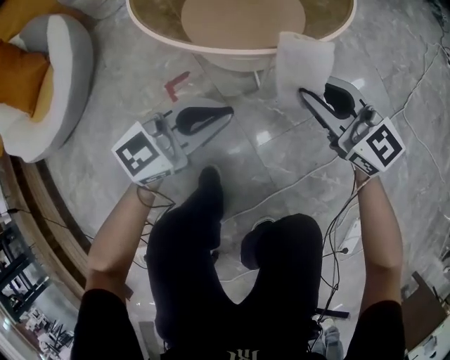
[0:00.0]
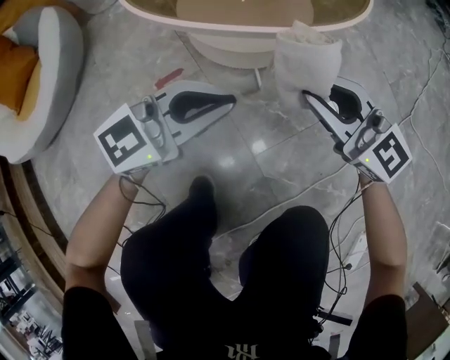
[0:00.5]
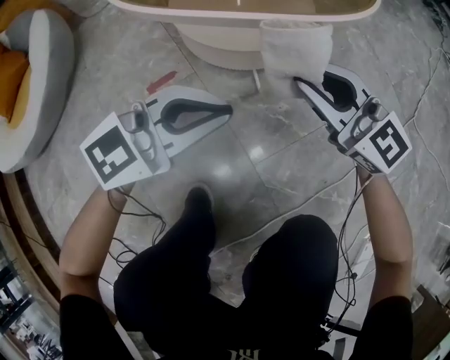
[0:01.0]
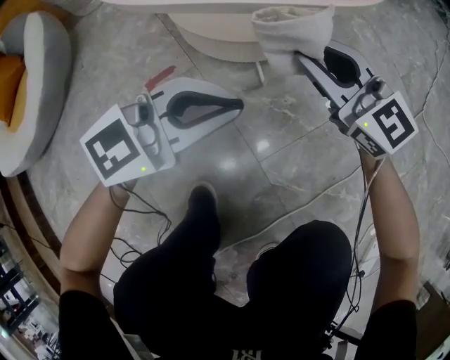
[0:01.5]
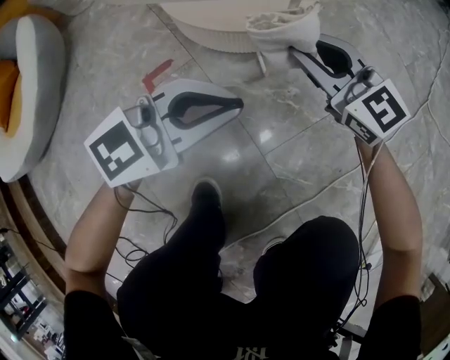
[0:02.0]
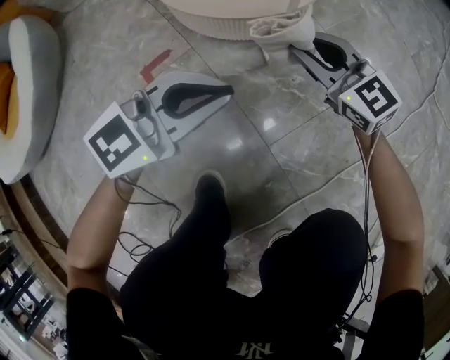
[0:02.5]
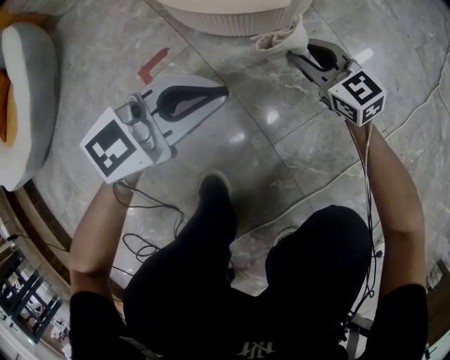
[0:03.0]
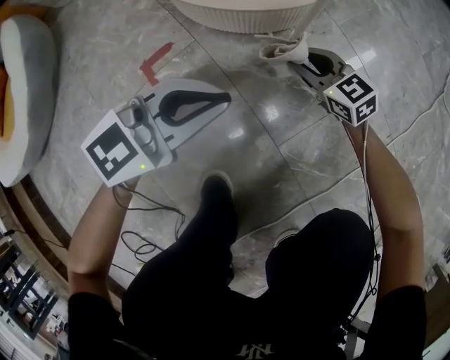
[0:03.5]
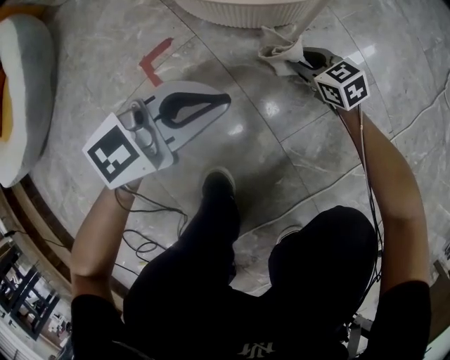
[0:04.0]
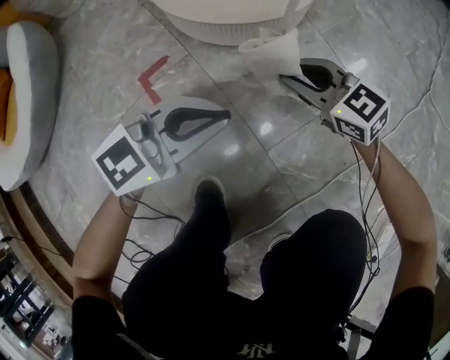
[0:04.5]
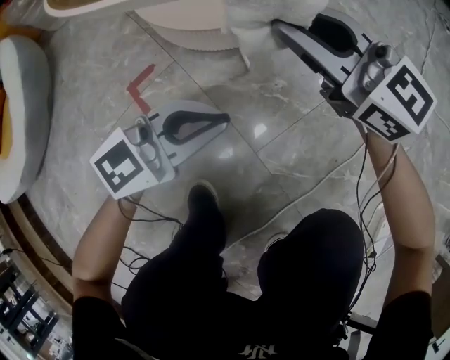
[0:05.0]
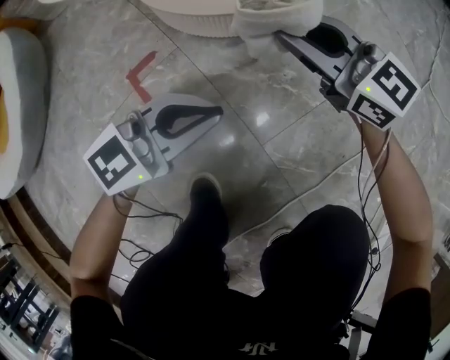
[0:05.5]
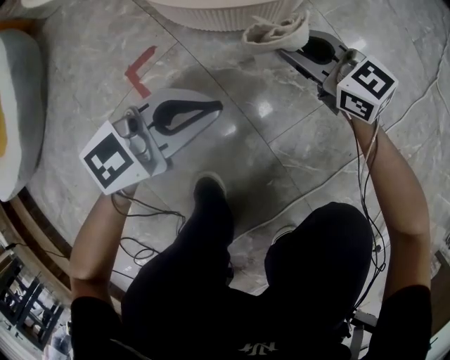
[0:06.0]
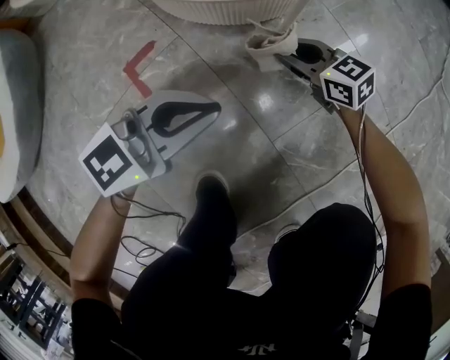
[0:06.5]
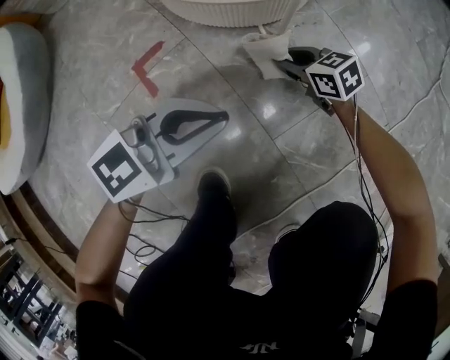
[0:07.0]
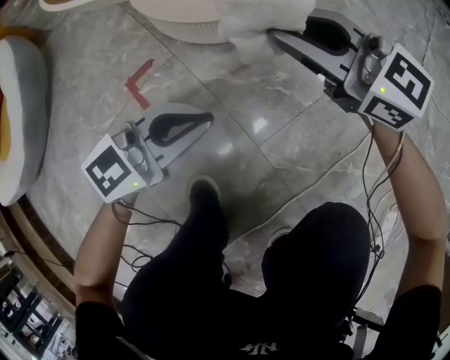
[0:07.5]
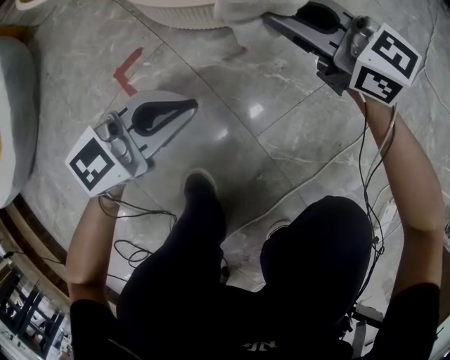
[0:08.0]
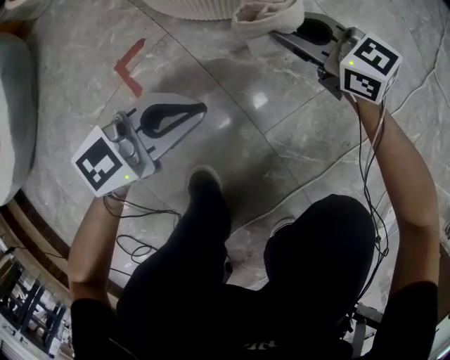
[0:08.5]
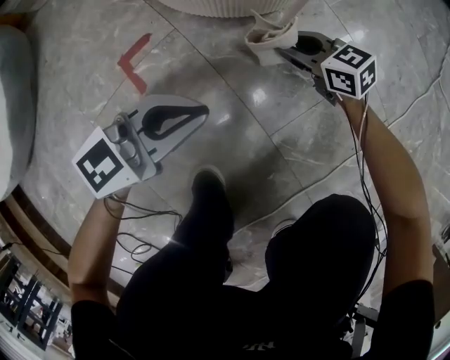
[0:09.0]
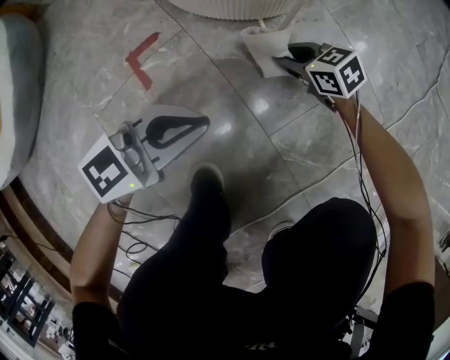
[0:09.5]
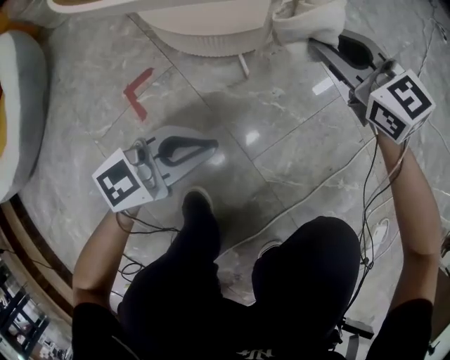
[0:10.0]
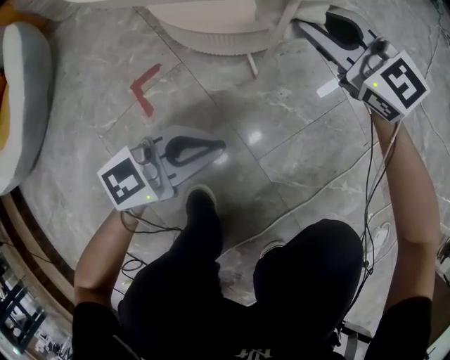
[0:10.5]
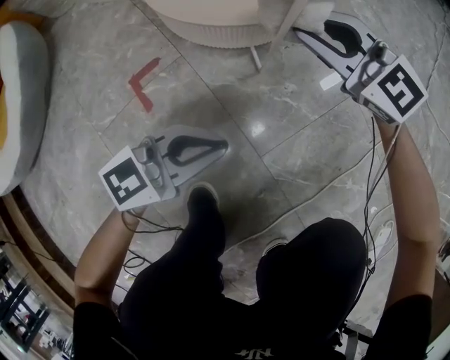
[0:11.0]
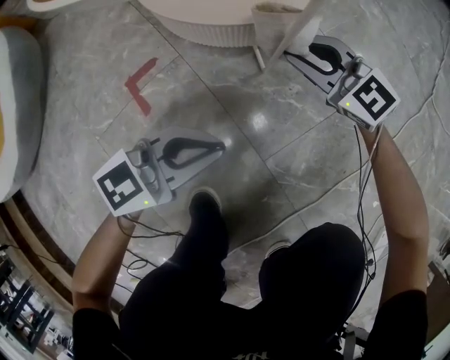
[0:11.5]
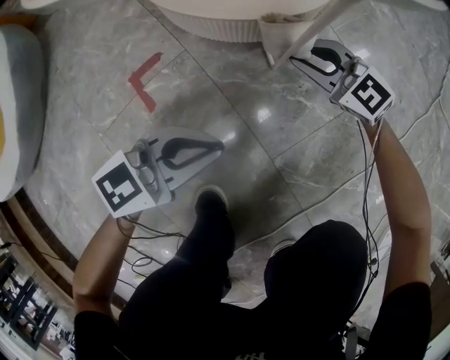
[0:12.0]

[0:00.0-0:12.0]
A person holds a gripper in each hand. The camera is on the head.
0:00.0 to 0:02.0: The two grippers go about 15 cm downward.
0:02.0 to 0:04.0: The right gripper heads downward, covering approximately 25 cm, and rotates roughly 30 degrees. Meanwhile the left gripper is displaced downward by roughly 5 cm.
0:04.0 to 0:06.0: The right gripper heads upward, covering roughly 15 cm, and swivels roughly 20 degrees.
0:06.0 to 0:08.0: The right gripper swings up and down, approximately 30 cm each way, with 2 reversals.
0:08.0 to 0:10.0: The right gripper reaches some 25 cm downward, then returns, and changes its angle by some 20 degrees.
0:10.0 to 0:12.0: The right gripper moves downward, approximately 15 cm, and changes its angle by some 20 degrees. The left gripper changes place by some 5 cm.

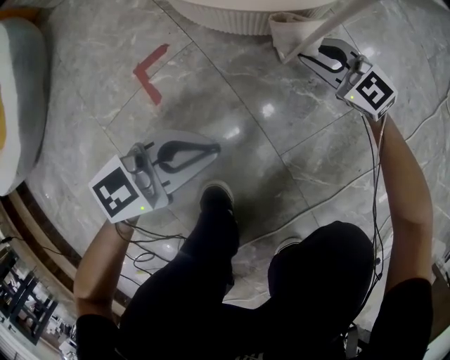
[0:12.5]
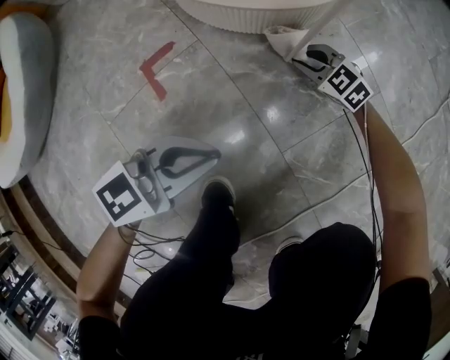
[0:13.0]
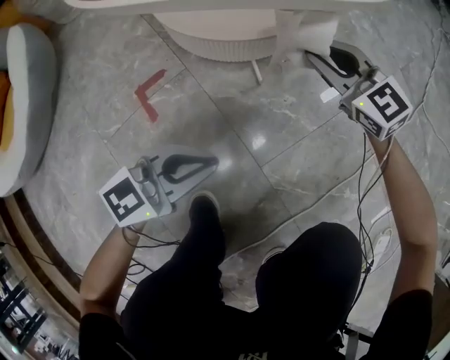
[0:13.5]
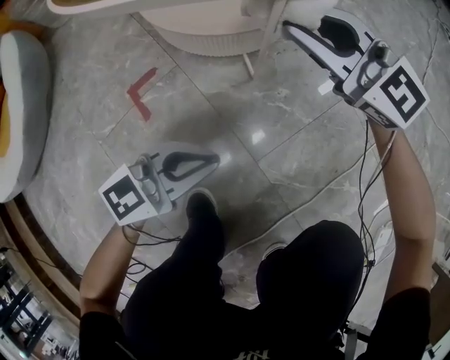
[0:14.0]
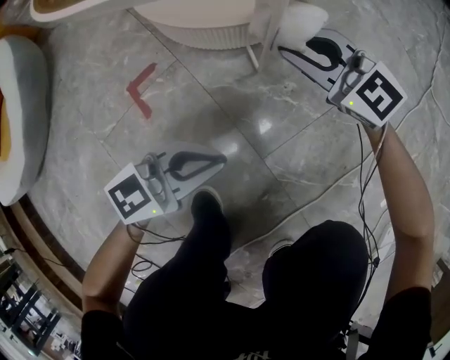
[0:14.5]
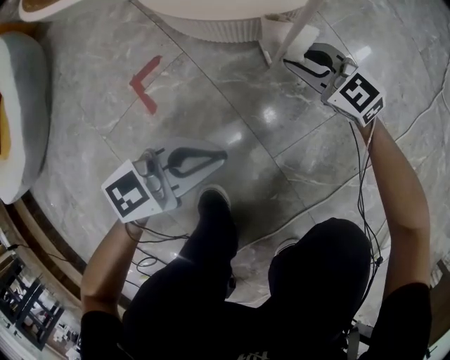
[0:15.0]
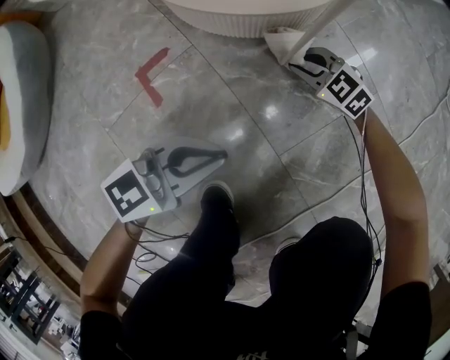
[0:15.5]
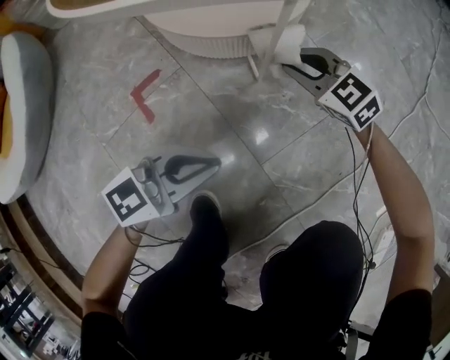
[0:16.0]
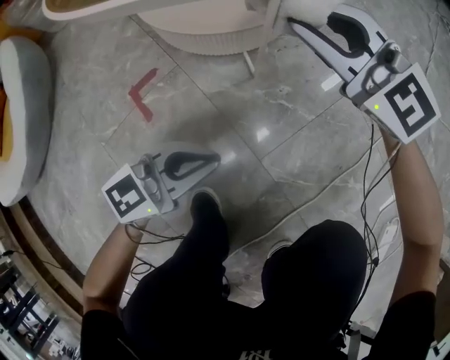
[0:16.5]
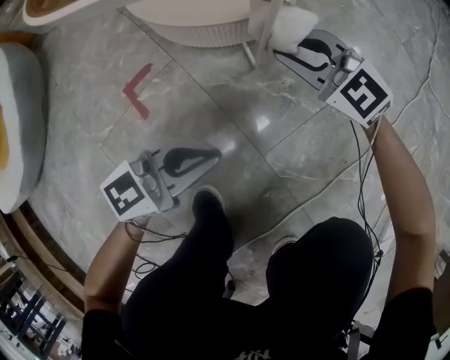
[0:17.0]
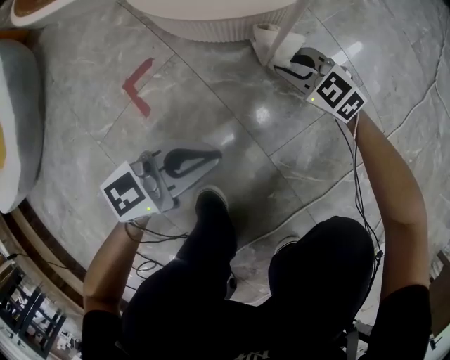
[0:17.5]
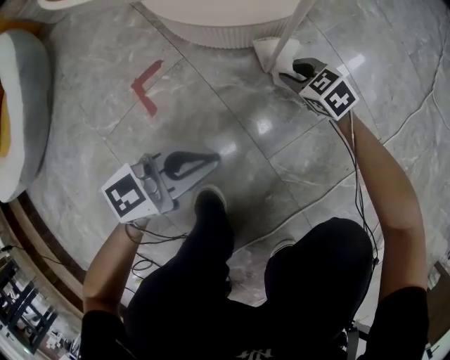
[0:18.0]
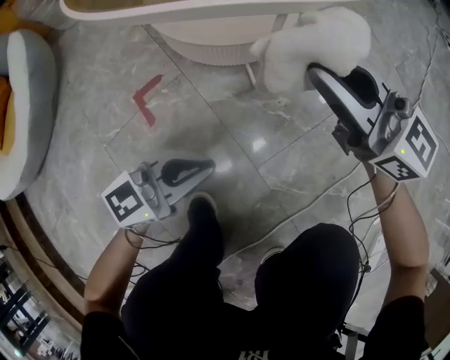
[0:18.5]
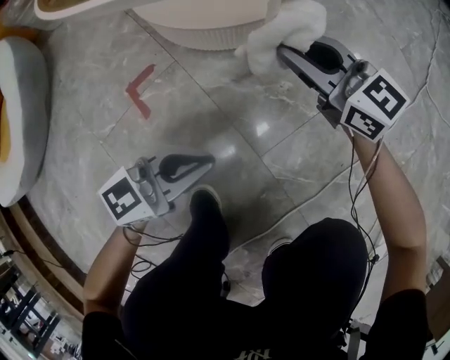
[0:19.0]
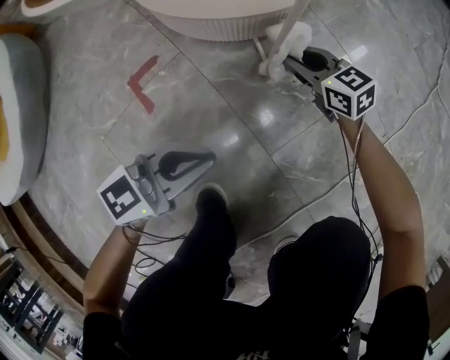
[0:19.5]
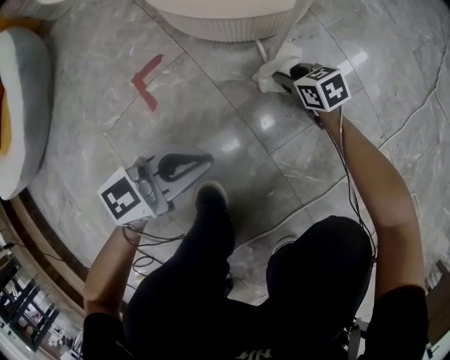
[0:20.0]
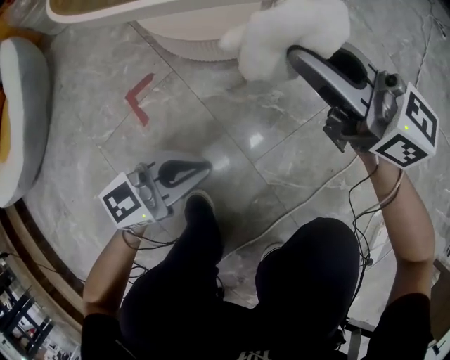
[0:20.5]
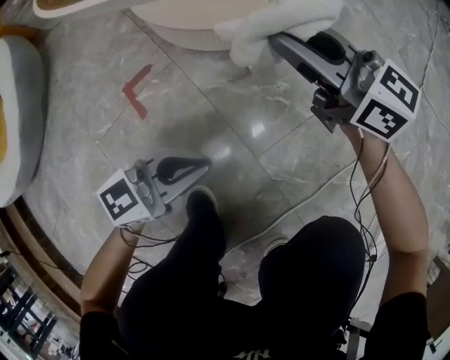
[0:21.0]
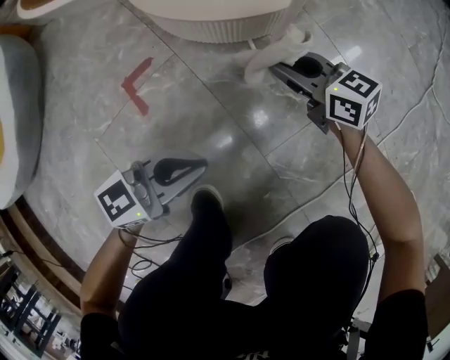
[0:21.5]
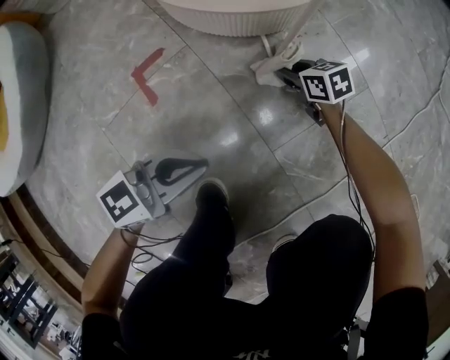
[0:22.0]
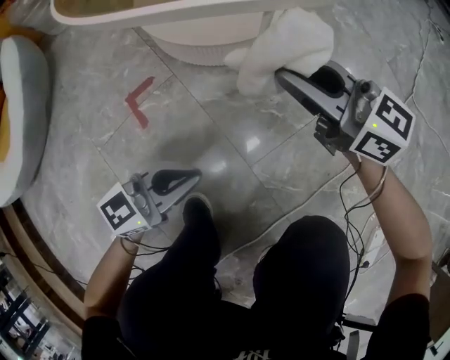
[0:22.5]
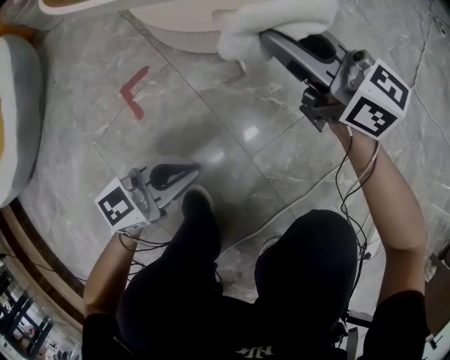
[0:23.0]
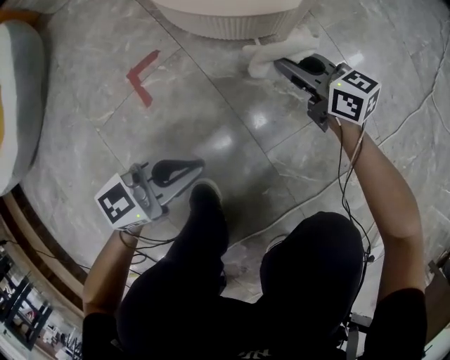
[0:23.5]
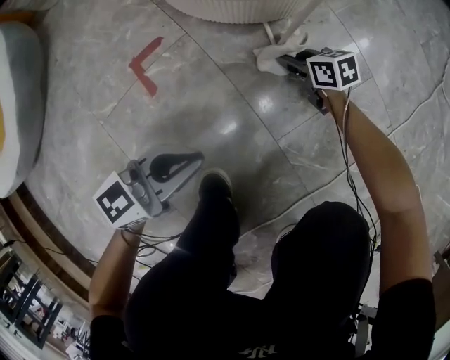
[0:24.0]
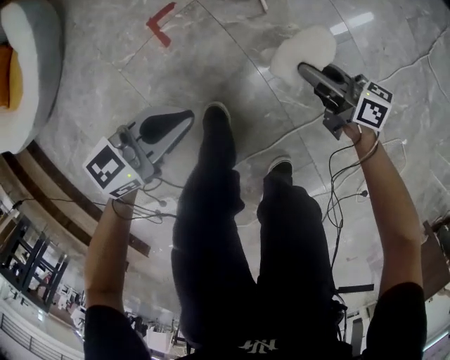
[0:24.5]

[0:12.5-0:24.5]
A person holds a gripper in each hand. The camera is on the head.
0:12.5 to 0:14.5: The right gripper swings up and down, roughly 30 cm each way, with 2 reversals, while the left gripper changes place by about 5 cm.
0:14.5 to 0:16.5: The right gripper moves upward, about 10 cm.
0:16.5 to 0:18.5: The right gripper moves roughly 30 cm downward and comes back, and rotates some 30 degrees.
0:18.5 to 0:20.5: The right gripper reaches roughly 35 cm downward, then returns.
0:20.5 to 0:22.5: The right gripper moves roughly 35 cm downward and comes back.
0:22.5 to 0:24.5: The left gripper travels upward by some 15 cm; the right gripper travels downward and back again, approximately 35 cm each way, and swivels approximately 40 degrees.

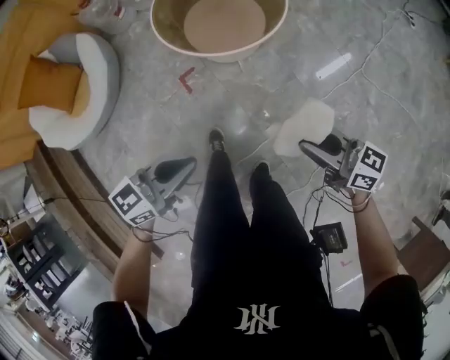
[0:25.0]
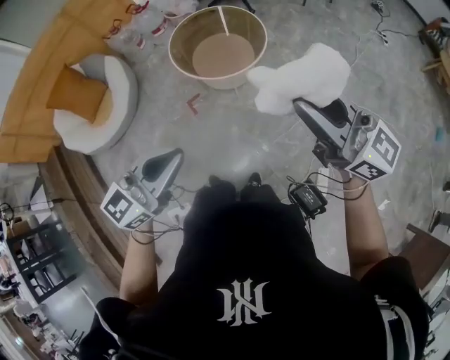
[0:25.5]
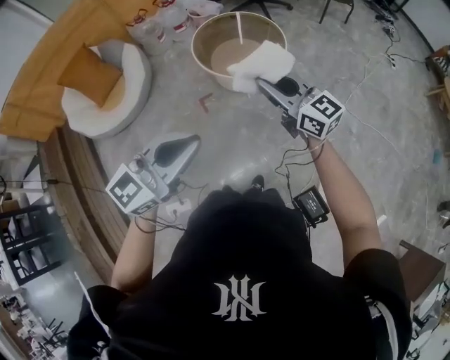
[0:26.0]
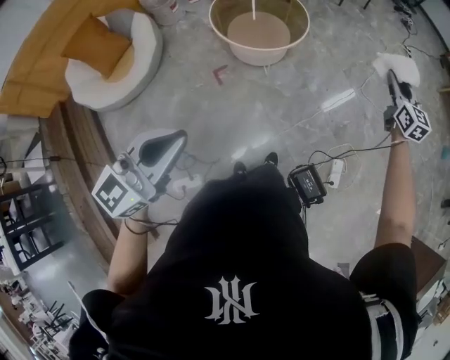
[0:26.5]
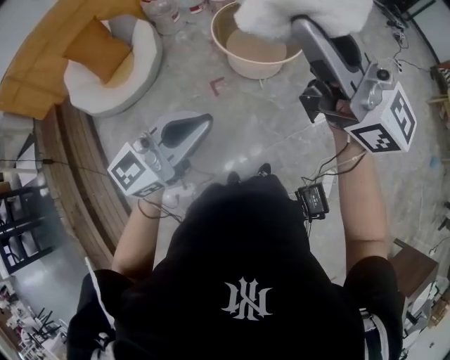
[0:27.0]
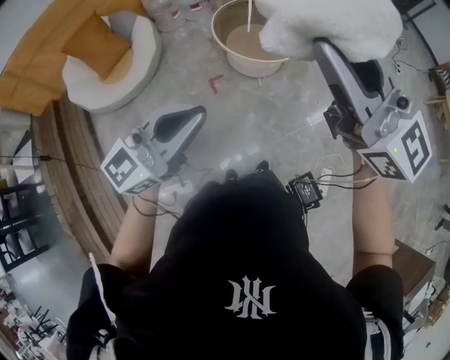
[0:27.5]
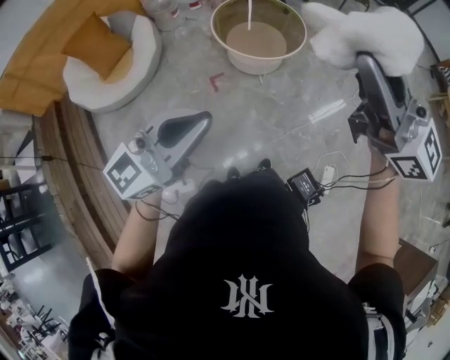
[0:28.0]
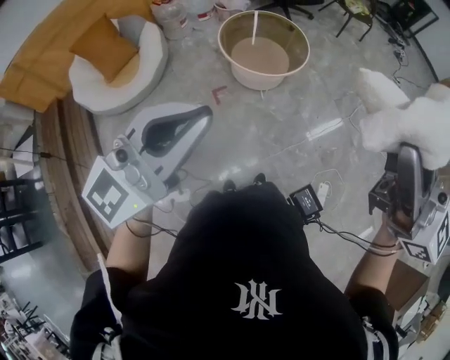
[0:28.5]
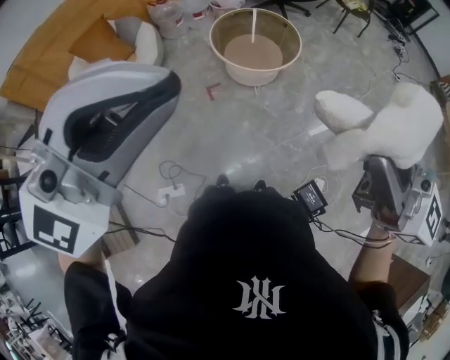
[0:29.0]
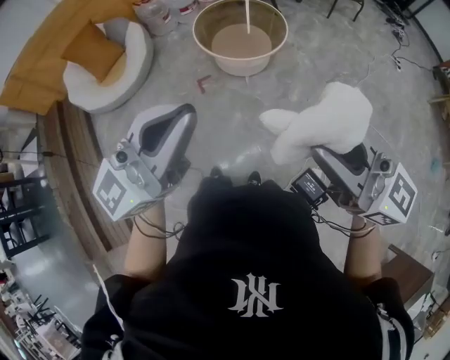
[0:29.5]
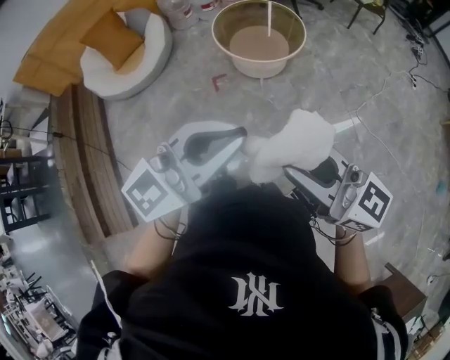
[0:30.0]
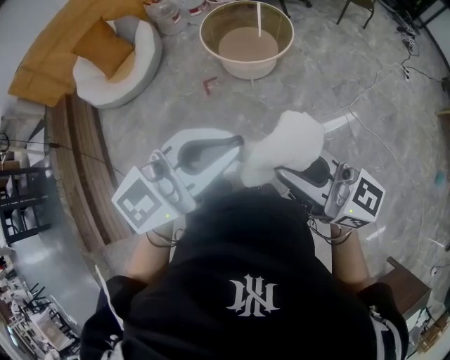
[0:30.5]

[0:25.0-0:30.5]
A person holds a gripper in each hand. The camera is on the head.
0:25.0 to 0:27.0: The right gripper goes up and down, some 50 cm each way, reversing 2 times, and points its fingers approximately 30 degrees further upward. Meanwhile the left gripper heads upward and backward, covering approximately 35 cm, and changes its angle by roughly 30 degrees.
0:27.0 to 0:28.5: The right gripper is displaced to the right and backward by roughly 15 cm, while the left gripper goes some 10 cm upward.
0:28.5 to 0:30.5: The left gripper is displaced to the right by roughly 25 cm. Meanwhile the right gripper travels downward and to the right by approximately 20 cm, and changes its angle by about 40 degrees.
